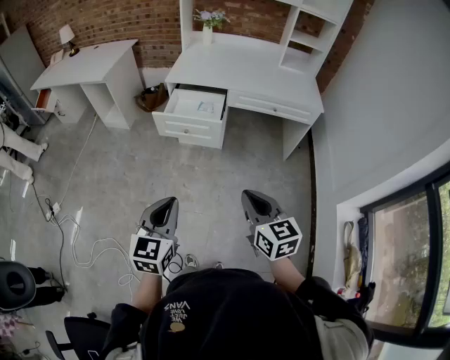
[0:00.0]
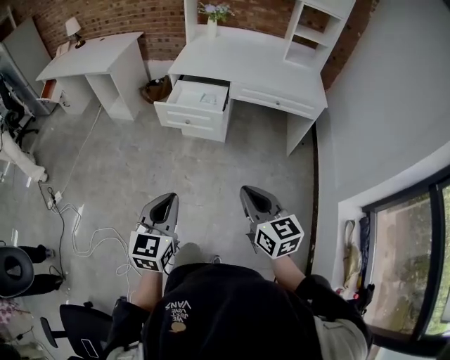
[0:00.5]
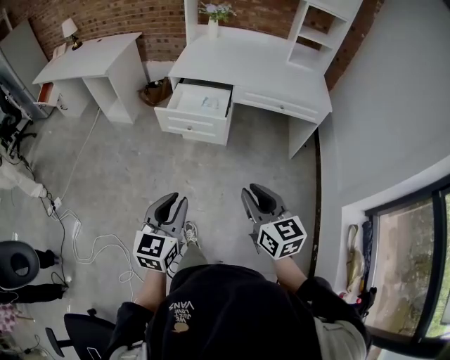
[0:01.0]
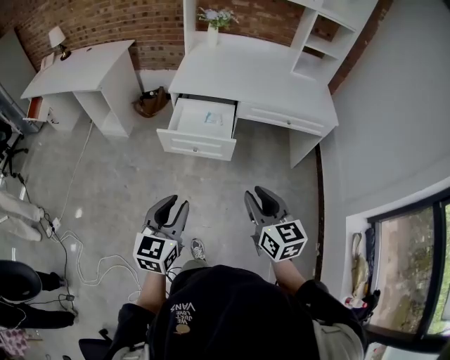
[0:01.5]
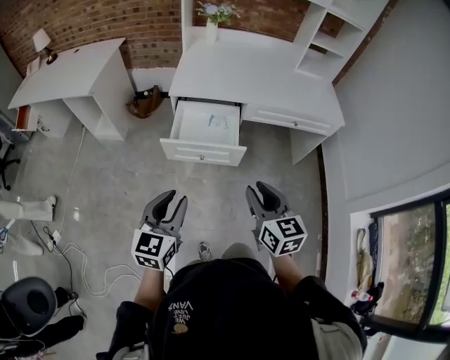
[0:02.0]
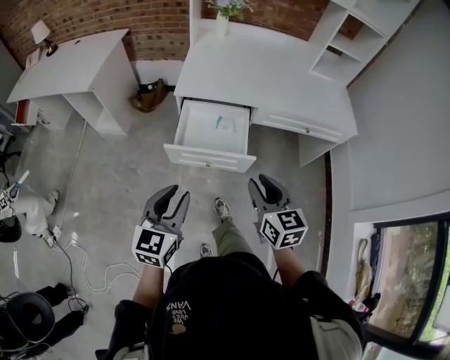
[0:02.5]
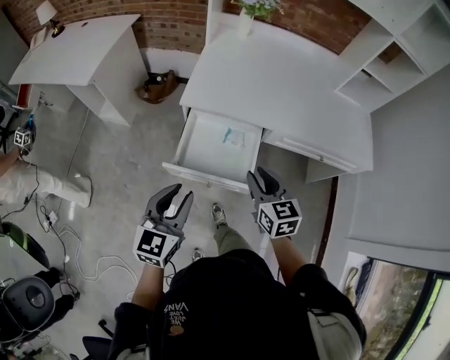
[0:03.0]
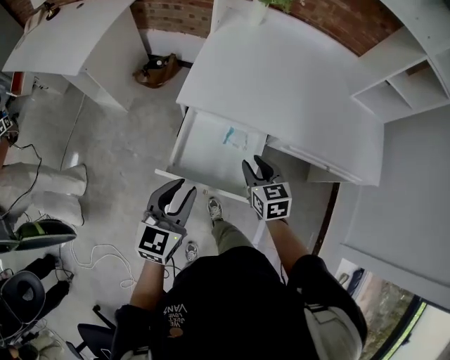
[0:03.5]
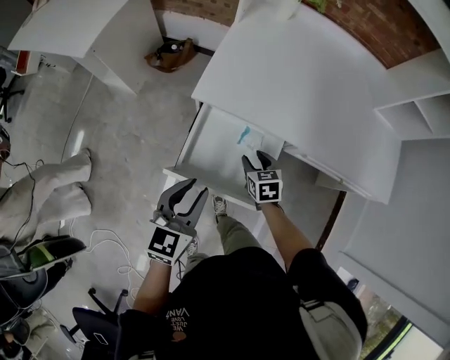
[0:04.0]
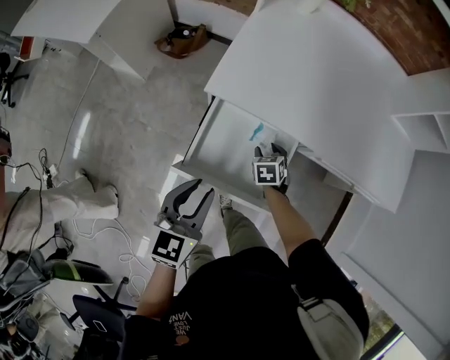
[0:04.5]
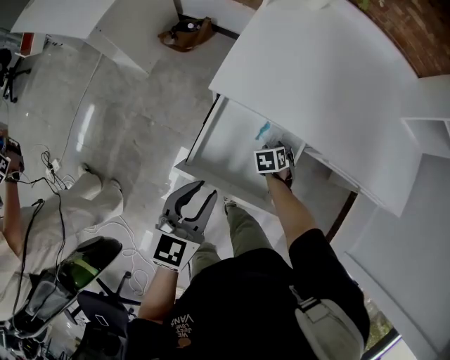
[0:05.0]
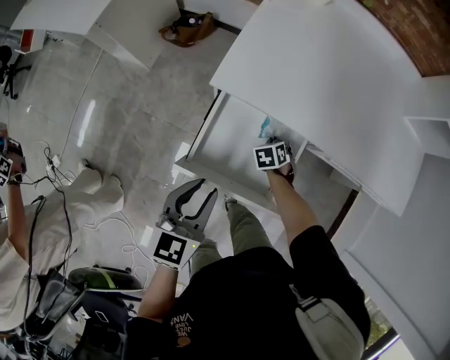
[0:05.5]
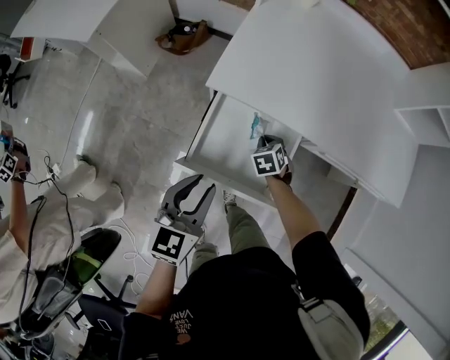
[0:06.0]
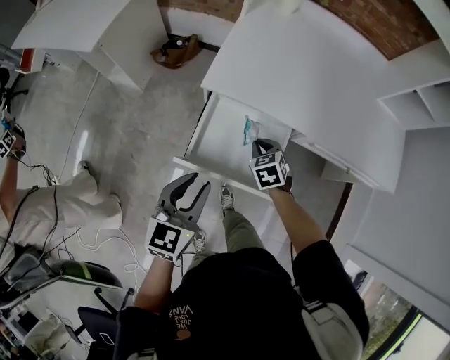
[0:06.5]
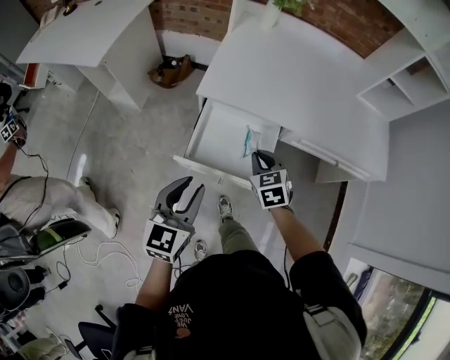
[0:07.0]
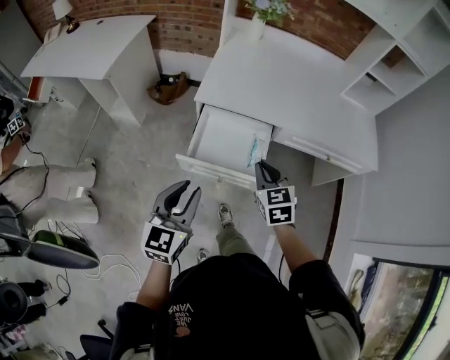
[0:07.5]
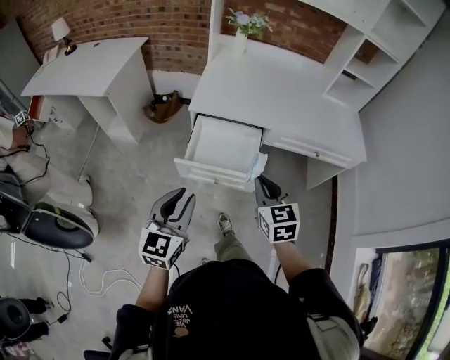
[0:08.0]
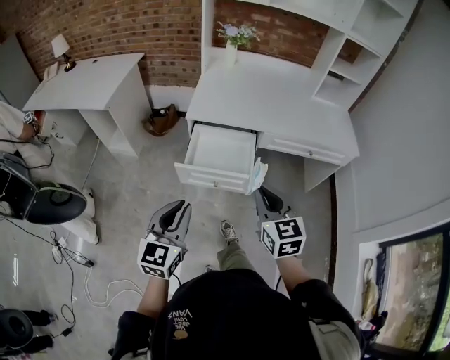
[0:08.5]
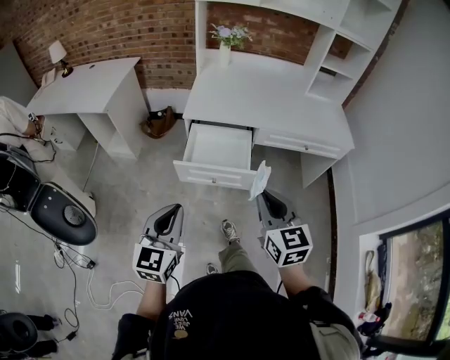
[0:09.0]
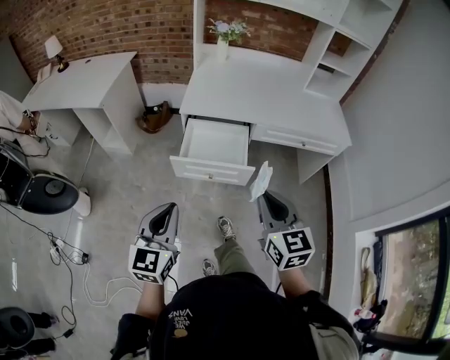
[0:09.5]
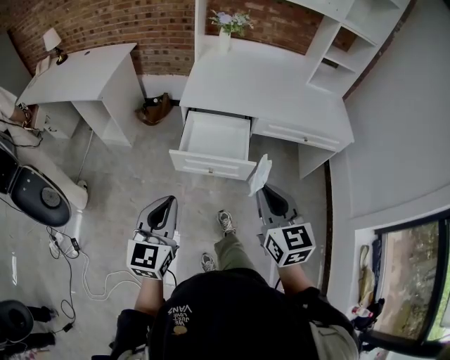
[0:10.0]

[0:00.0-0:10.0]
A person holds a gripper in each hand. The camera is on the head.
0:00.0 to 0:02.0: The two grippers go about 30 cm forward and to the left. The left gripper opens up. The right gripper opens.
0:02.0 to 0:04.0: The left gripper moves forward, about 35 cm; the right gripper goes approximately 50 cm forward and downward, and tilts its fingers approximately 30 degrees downward.
0:04.0 to 0:06.0: The right gripper is displaced downward by roughly 10 cm, changes its angle by some 20 degrees, and closes.
0:06.0 to 0:08.0: The left gripper is displaced backward and upward by roughly 25 cm. The right gripper is displaced upward and backward by approximately 50 cm, and angles its fingers upward, by about 40 degrees.
0:08.0 to 0:10.0: The left gripper goes roughly 10 cm backward, and closes up; the right gripper is displaced backward and upward by roughly 15 cm.

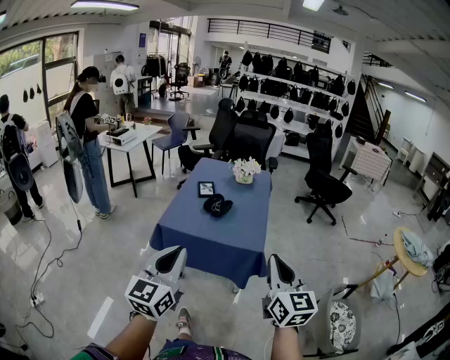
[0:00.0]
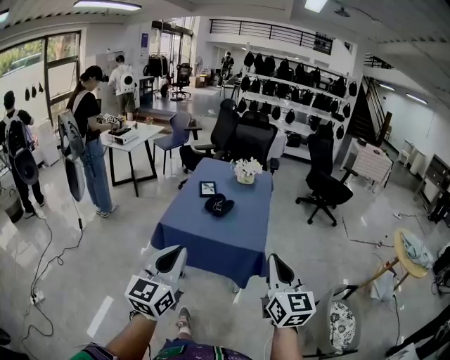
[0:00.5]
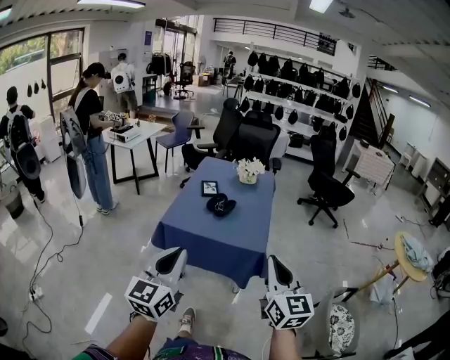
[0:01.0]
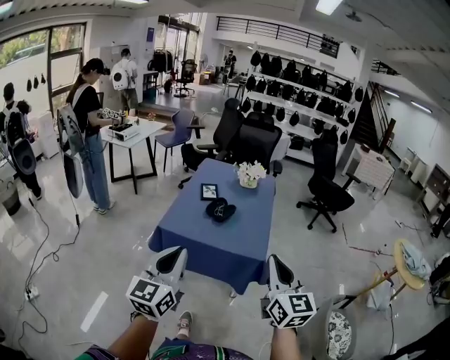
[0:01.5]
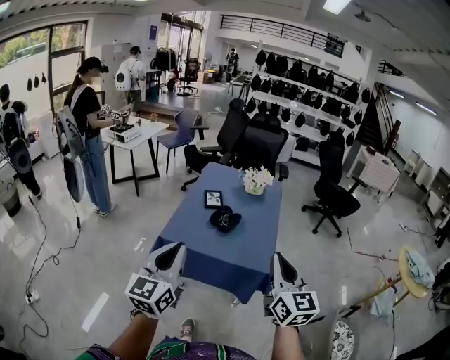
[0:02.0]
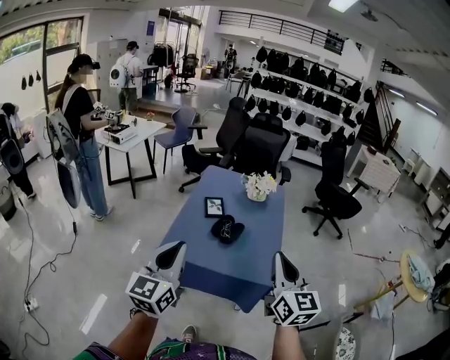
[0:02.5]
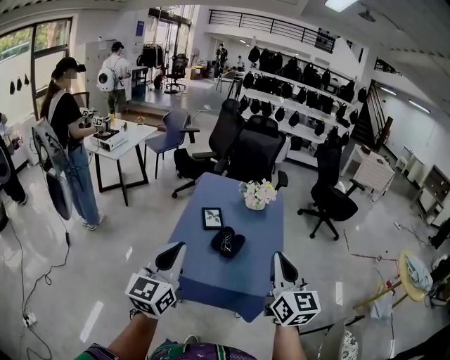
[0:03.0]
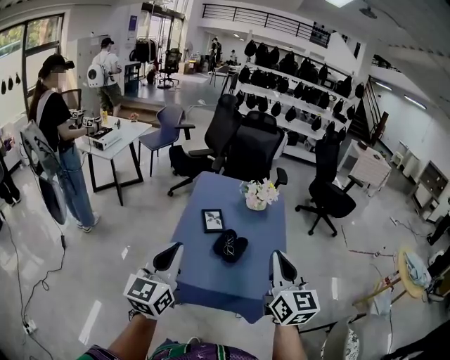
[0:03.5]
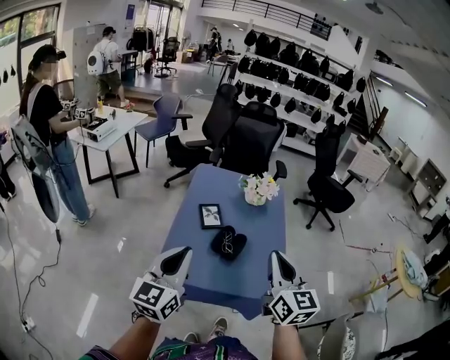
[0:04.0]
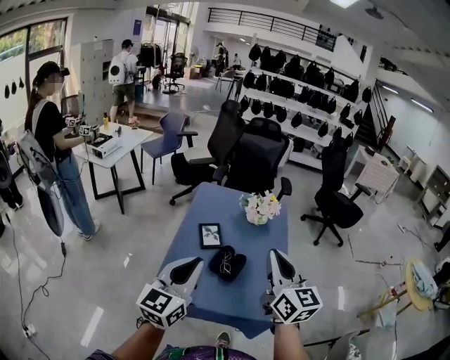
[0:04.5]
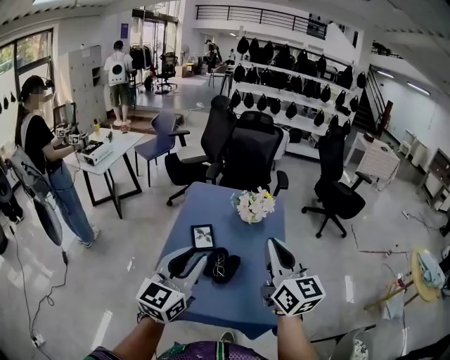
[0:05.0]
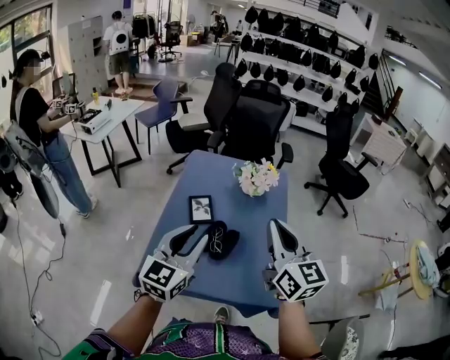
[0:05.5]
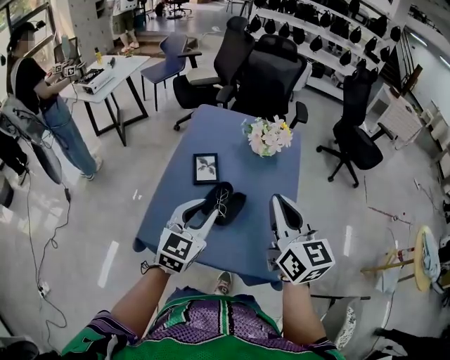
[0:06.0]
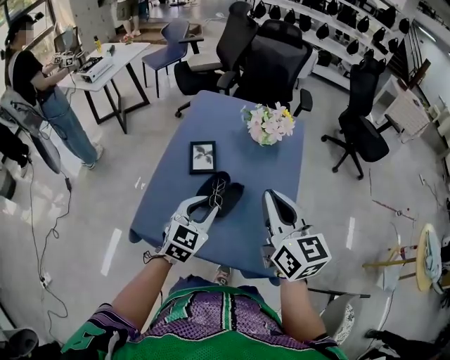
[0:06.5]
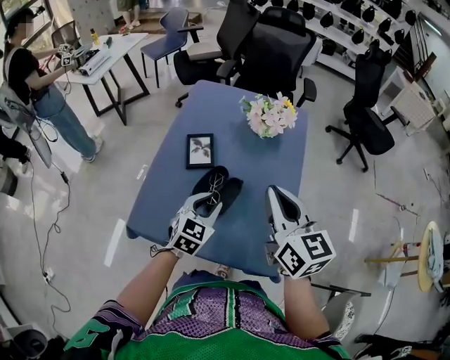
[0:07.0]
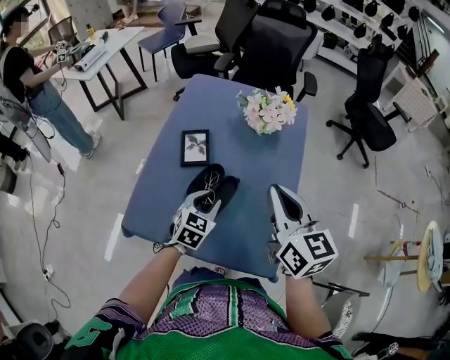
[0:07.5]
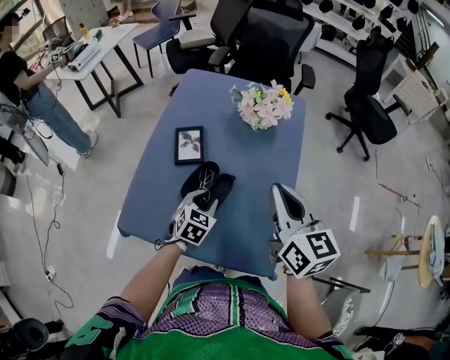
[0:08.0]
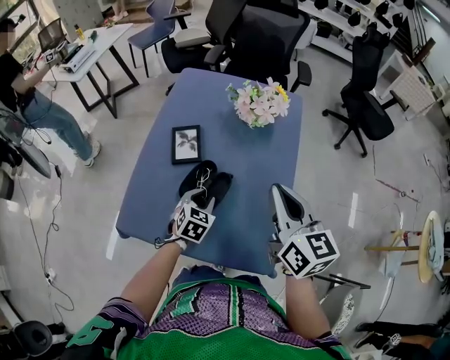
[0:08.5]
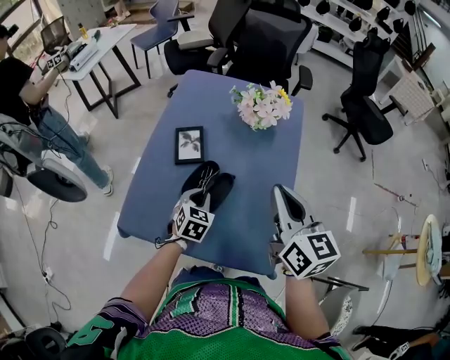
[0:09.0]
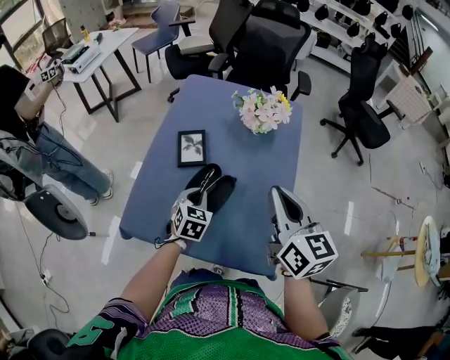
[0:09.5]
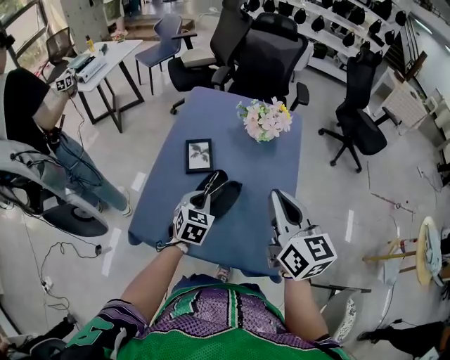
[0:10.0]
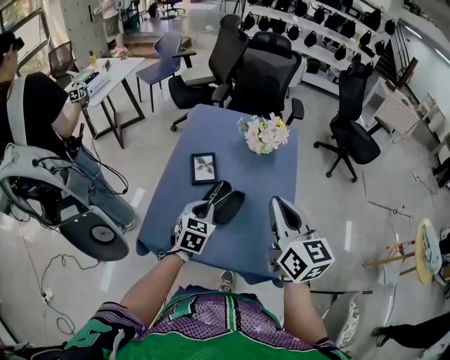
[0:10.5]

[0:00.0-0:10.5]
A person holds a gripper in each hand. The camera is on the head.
0:00.0 to 0:02.0: The right gripper shifts some 10 cm forward; the left gripper goes roughly 15 cm forward and to the left.
0:02.0 to 0:04.0: The left gripper is displaced forward by about 25 cm, while the right gripper goes roughly 25 cm forward and to the left.
0:04.0 to 0:06.5: The right gripper goes some 20 cm forward and downward, while the left gripper is displaced downward, forward and to the right by about 30 cm, swivels approximately 30 degrees, and opens up.
0:06.5 to 0:08.5: The left gripper shifts some 15 cm downward, and swivels about 20 degrees; the right gripper heads to the right and downward, covering about 10 cm.
0:08.5 to 0:10.5: The left gripper heads upward and to the left, covering roughly 15 cm, and closes its fingers, while the right gripper is displaced upward, to the left and backward by about 10 cm.

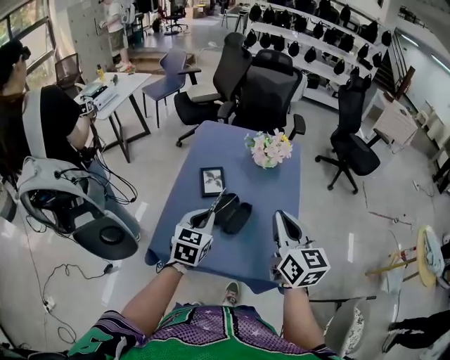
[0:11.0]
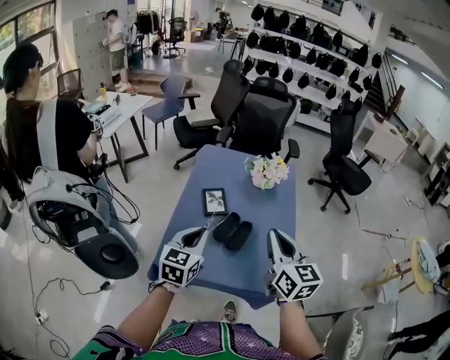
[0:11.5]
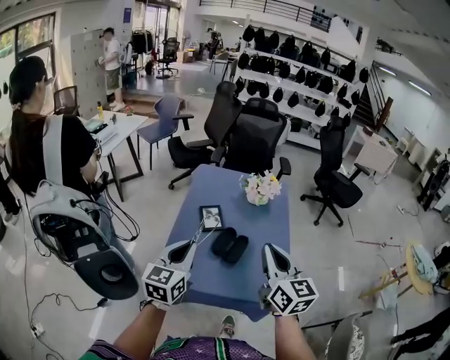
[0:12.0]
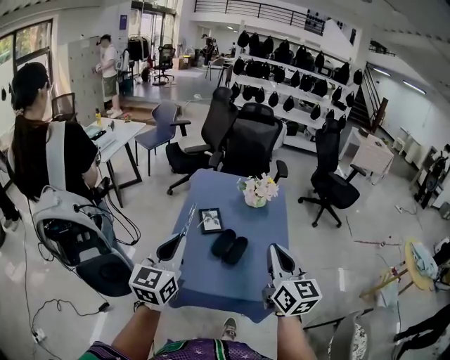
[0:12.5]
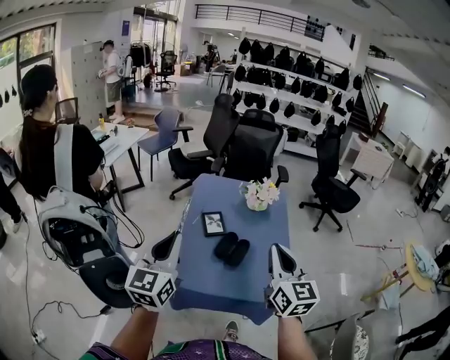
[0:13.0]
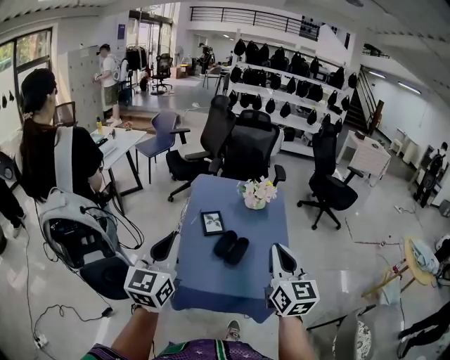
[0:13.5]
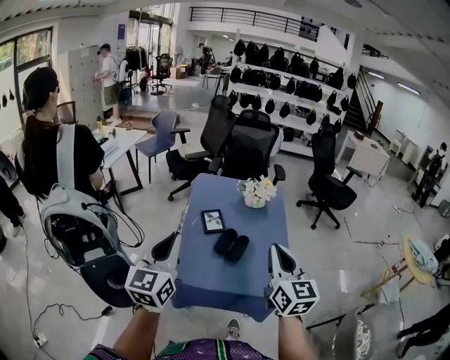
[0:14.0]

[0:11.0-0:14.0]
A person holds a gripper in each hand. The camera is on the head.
0:11.0 to 0:12.5: The left gripper heads upward, to the left and backward, covering some 25 cm, and changes its angle by about 30 degrees; the right gripper is displaced backward and upward by some 10 cm.
0:12.5 to 0:14.0: The left gripper is displaced backward by about 5 cm.

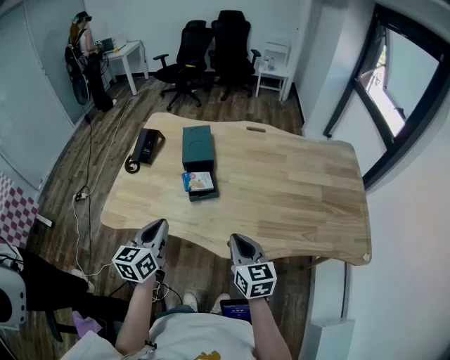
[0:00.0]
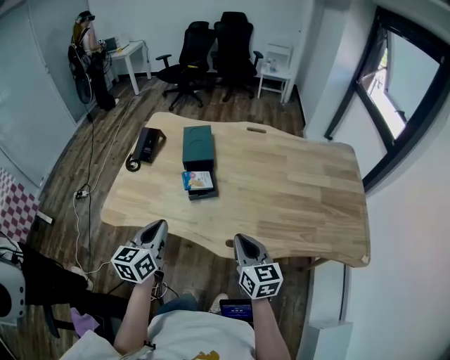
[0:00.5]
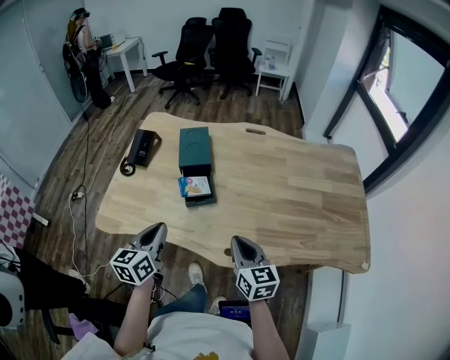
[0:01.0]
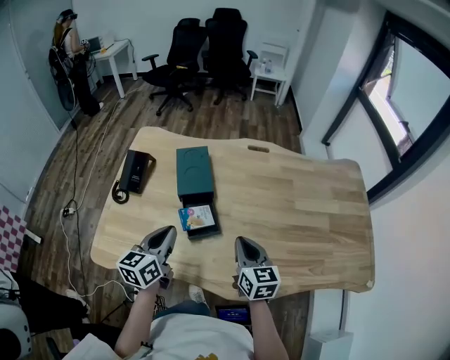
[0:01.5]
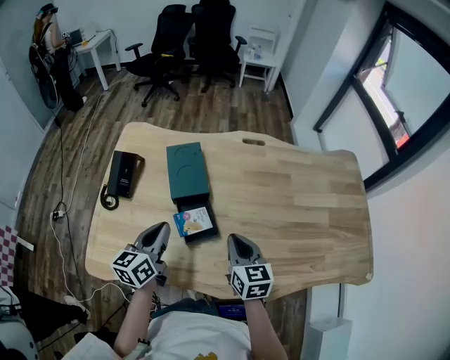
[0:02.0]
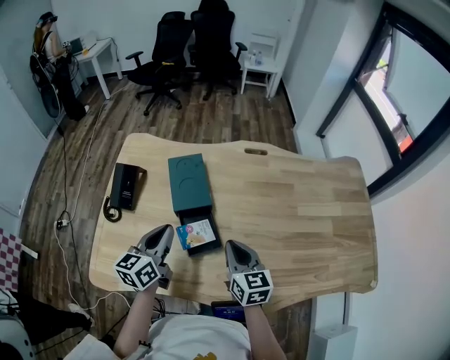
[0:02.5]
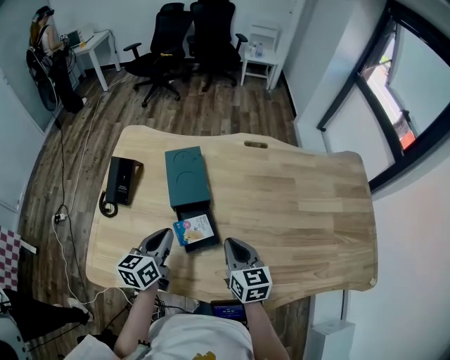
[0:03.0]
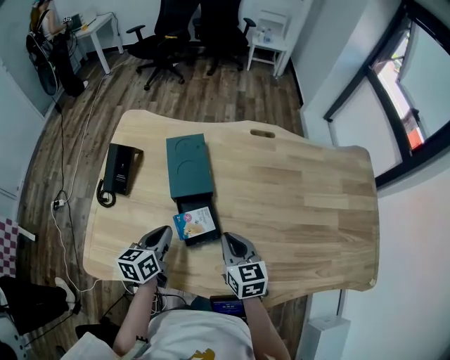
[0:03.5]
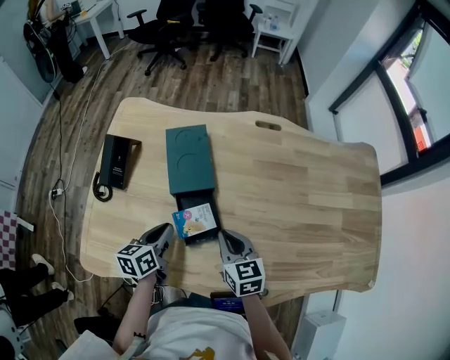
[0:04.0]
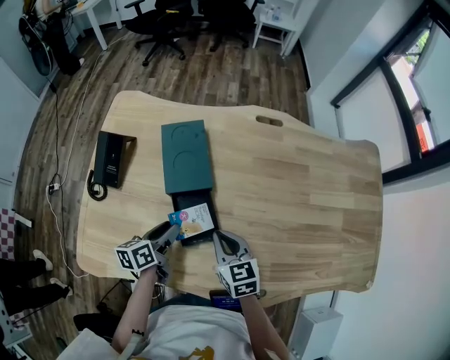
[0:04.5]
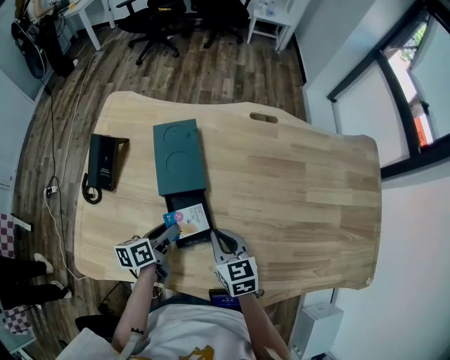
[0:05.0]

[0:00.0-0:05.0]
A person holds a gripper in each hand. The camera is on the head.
0:00.0 to 0:02.5: The grippers both shift forward by approximately 25 cm.
0:02.5 to 0:05.0: The right gripper is displaced downward by approximately 10 cm. Meanwhile the left gripper goes roughly 20 cm downward, swivels approximately 40 degrees, and opens up.
